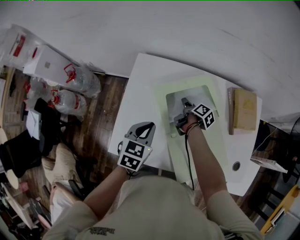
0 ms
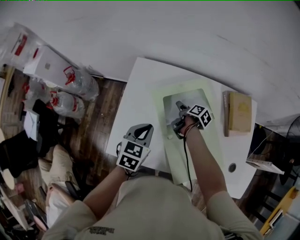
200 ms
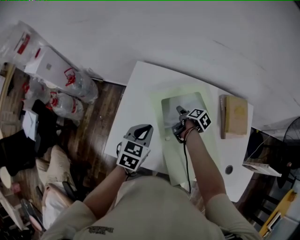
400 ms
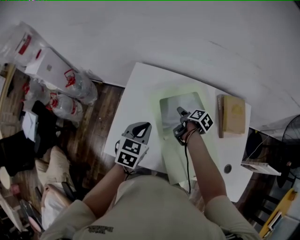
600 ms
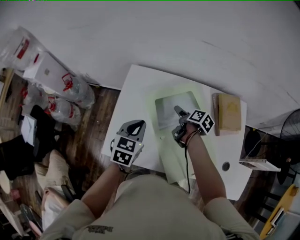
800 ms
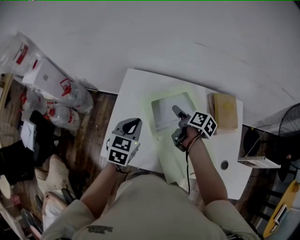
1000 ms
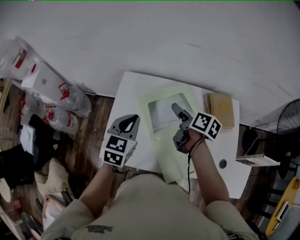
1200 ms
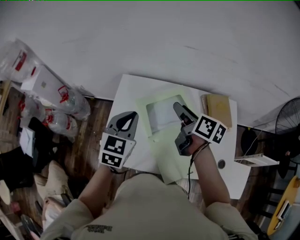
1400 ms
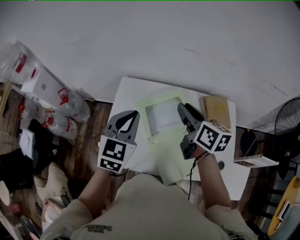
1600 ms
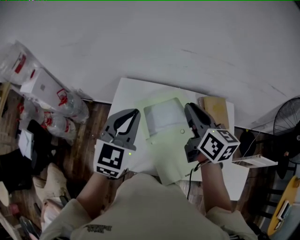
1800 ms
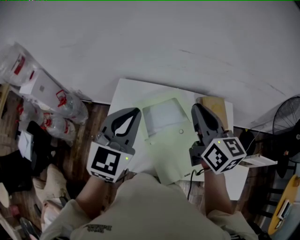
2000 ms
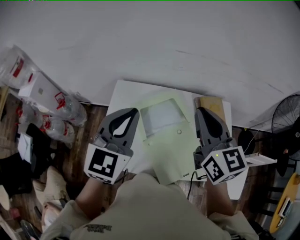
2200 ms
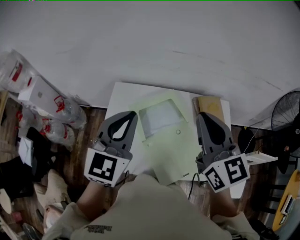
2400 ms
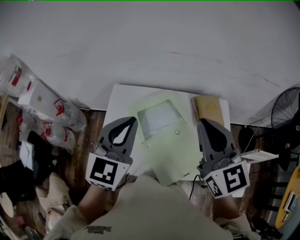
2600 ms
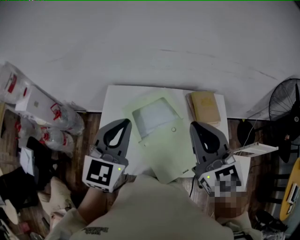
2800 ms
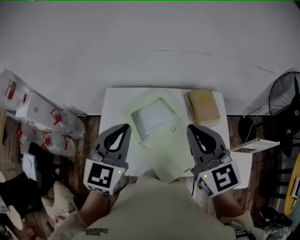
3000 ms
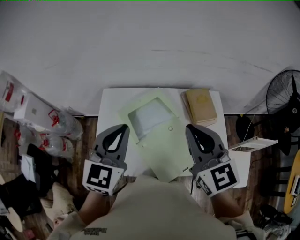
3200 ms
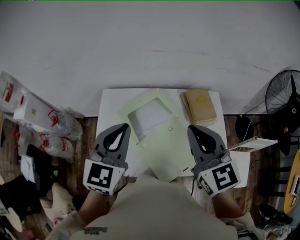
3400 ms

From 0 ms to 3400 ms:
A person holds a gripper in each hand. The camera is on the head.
From 0 ms to 1600 ms: The right gripper moves upward, about 35 cm, rolls counterclockwise, seen from behind, by roughly 50 degrees, and opens and closes again. Meanwhile the left gripper moves upward, some 20 cm, and changes its angle by some 30 degrees.
From 1600 ms to 3400 ms: The left gripper is displaced upward and to the right by approximately 10 cm. The right gripper goes some 15 cm backward, upward and to the right, and turns by some 40 degrees.

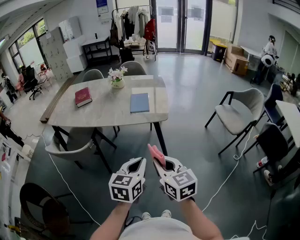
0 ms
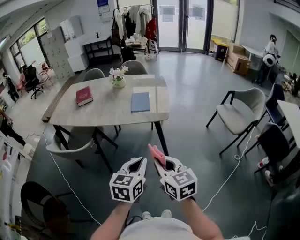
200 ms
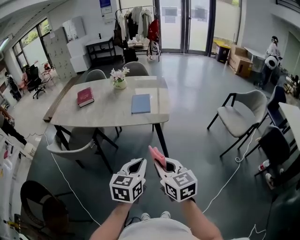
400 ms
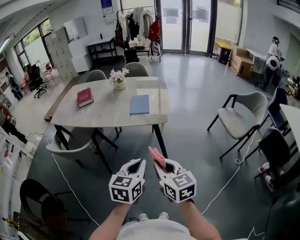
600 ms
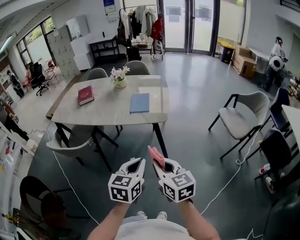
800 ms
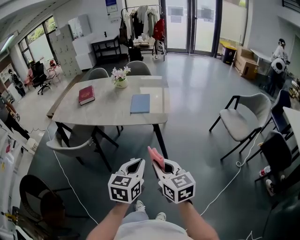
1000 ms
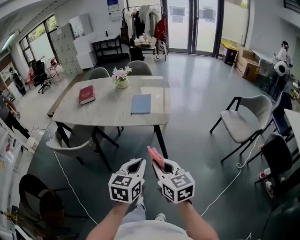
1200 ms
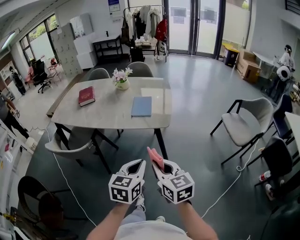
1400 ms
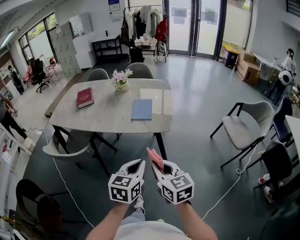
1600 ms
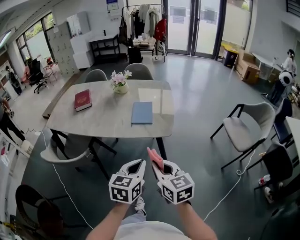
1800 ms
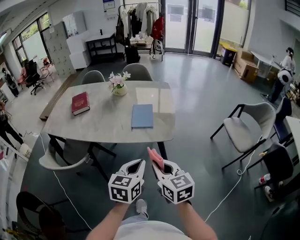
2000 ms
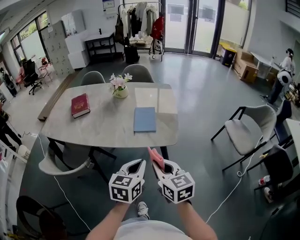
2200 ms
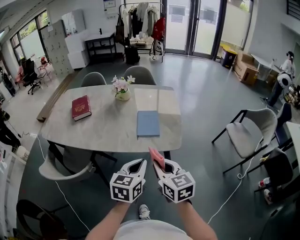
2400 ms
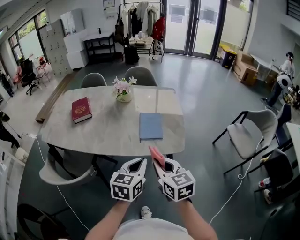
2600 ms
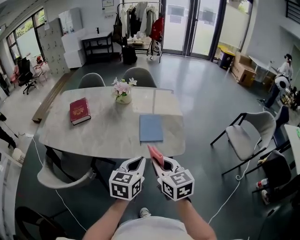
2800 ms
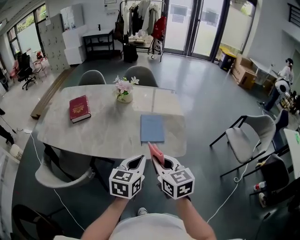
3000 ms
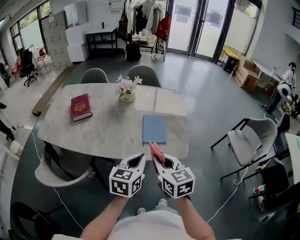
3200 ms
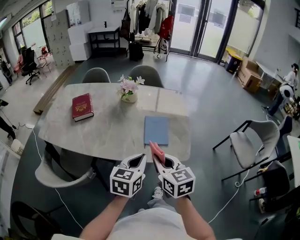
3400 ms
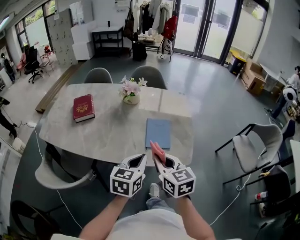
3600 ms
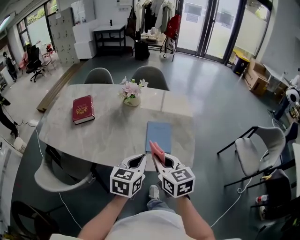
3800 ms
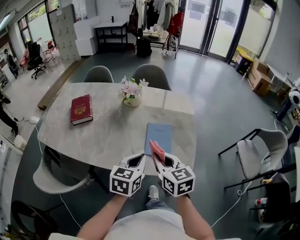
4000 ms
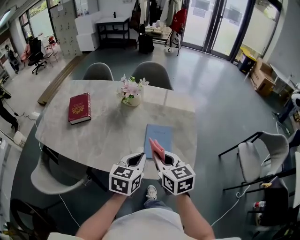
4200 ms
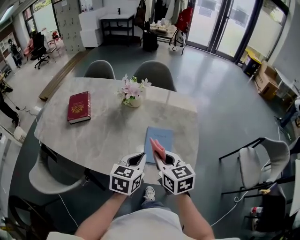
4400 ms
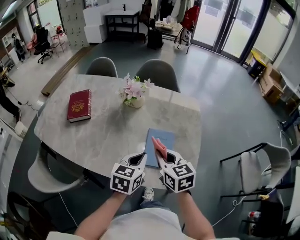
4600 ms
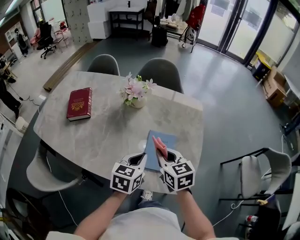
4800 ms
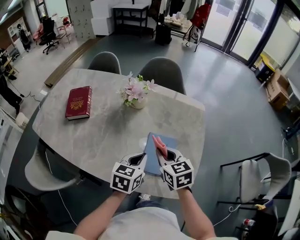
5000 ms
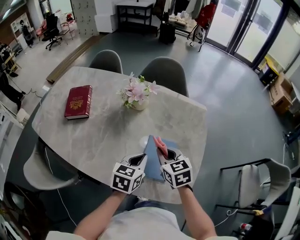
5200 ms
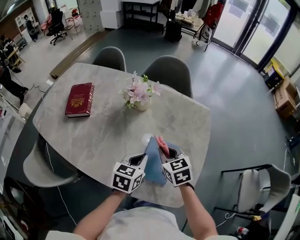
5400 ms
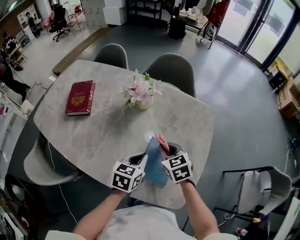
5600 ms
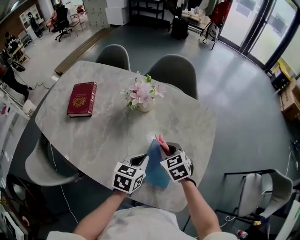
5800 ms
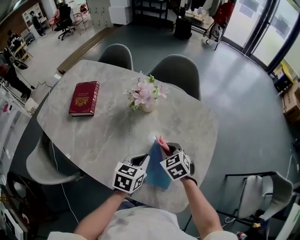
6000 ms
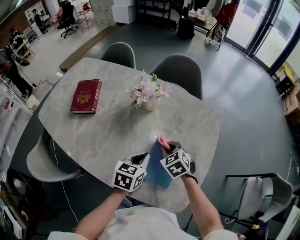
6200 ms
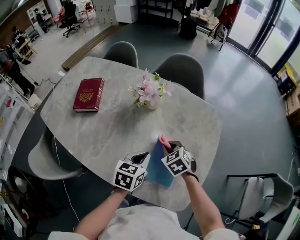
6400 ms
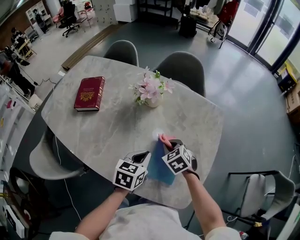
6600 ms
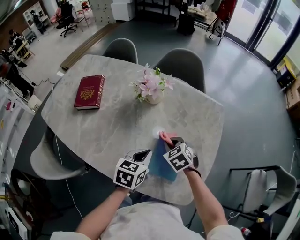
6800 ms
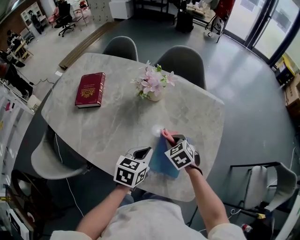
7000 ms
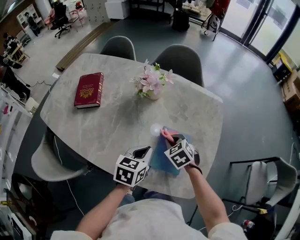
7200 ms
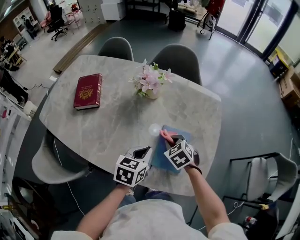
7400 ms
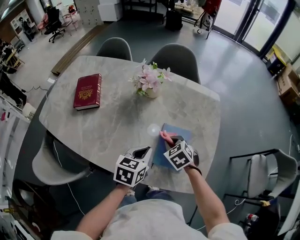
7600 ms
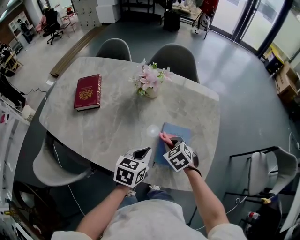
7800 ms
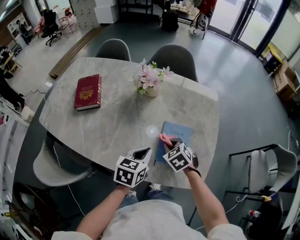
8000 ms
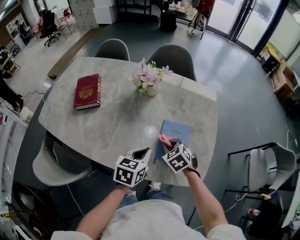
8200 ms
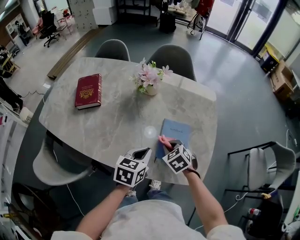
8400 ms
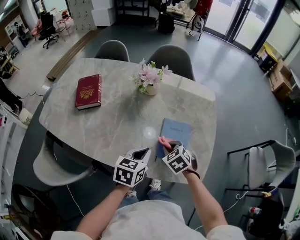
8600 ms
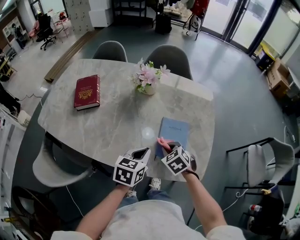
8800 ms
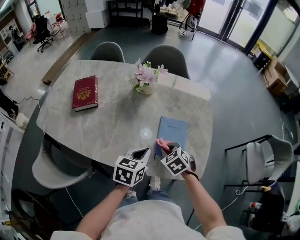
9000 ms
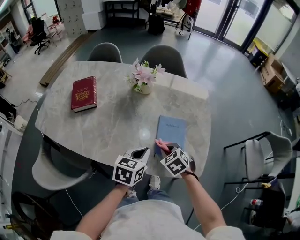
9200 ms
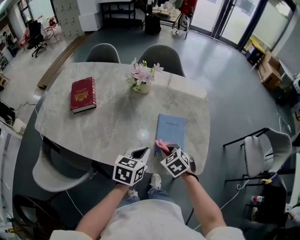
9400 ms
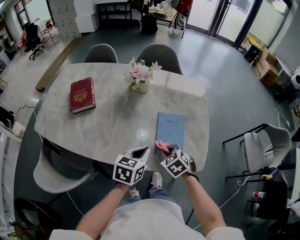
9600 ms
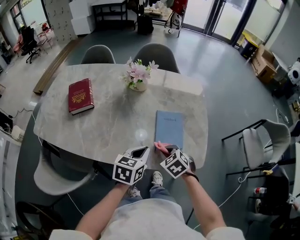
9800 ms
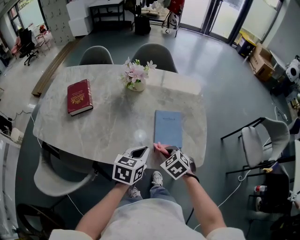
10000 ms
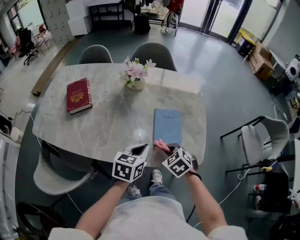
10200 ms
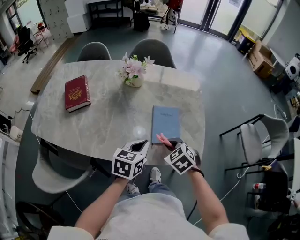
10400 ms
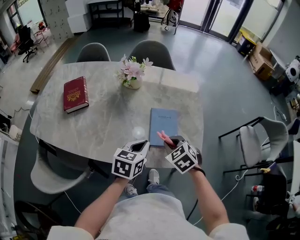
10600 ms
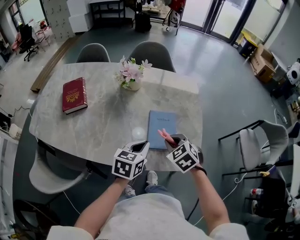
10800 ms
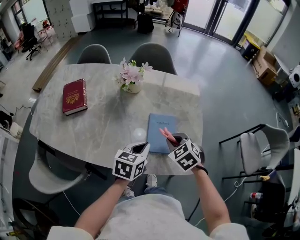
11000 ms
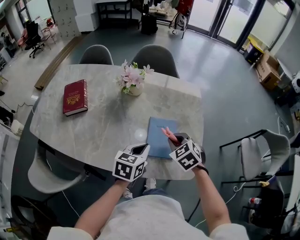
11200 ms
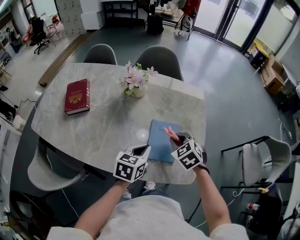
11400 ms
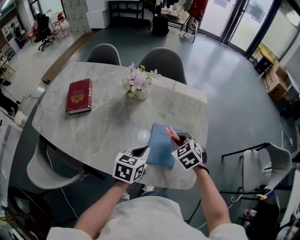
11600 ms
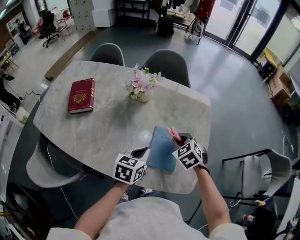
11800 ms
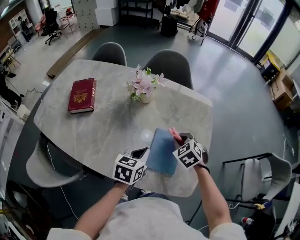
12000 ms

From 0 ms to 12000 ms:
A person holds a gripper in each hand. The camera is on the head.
From 0 ms to 1600 ms: Both grippers move forward, roughly 10 cm.
From 1600 ms to 3000 ms: The grippers both shift forward and to the left by roughly 25 cm.
From 3000 ms to 4400 ms: Both grippers move forward, about 20 cm.
From 4400 ms to 6000 ms: Both grippers move forward and downward, roughly 20 cm. The right gripper turns by about 40 degrees.
From 6000 ms to 7600 ms: The right gripper shifts roughly 5 cm backward, while the left gripper shifts by some 5 cm.
From 7600 ms to 9000 ms: The left gripper travels backward by roughly 5 cm. Meanwhile the right gripper goes approximately 10 cm backward.
From 9000 ms to 10400 ms: The right gripper ends up about 5 cm from where it was.
From 10400 ms to 12000 ms: The right gripper goes approximately 20 cm forward. The left gripper goes some 10 cm forward.

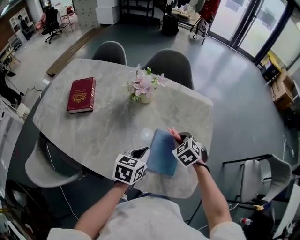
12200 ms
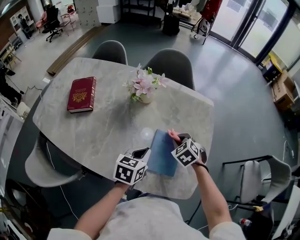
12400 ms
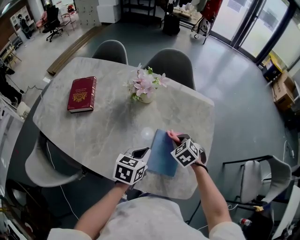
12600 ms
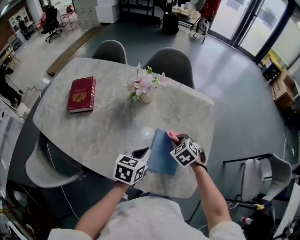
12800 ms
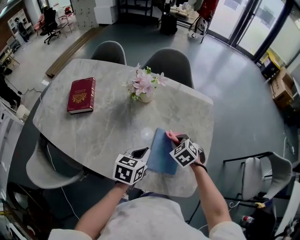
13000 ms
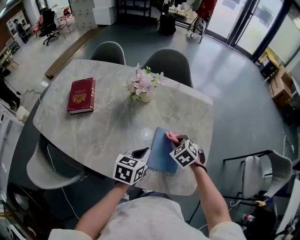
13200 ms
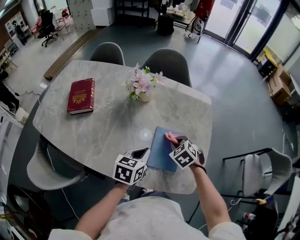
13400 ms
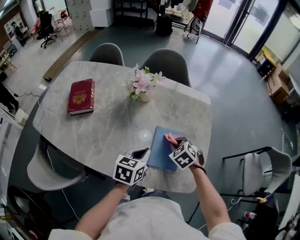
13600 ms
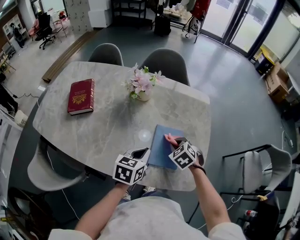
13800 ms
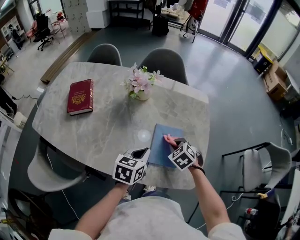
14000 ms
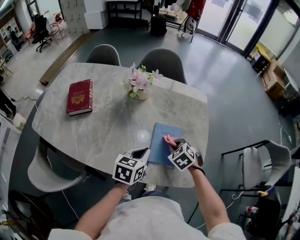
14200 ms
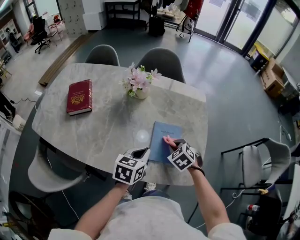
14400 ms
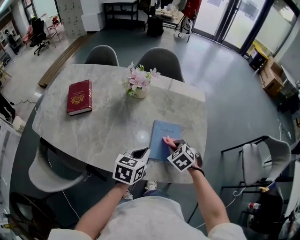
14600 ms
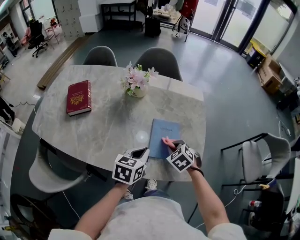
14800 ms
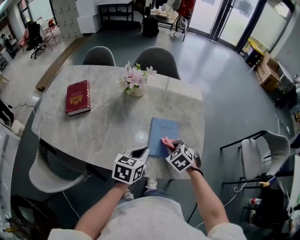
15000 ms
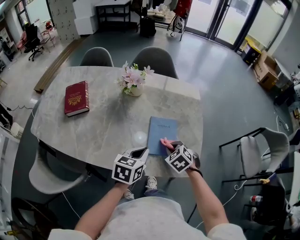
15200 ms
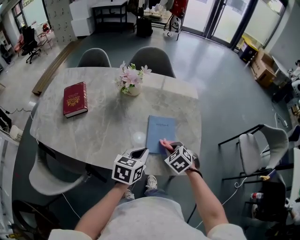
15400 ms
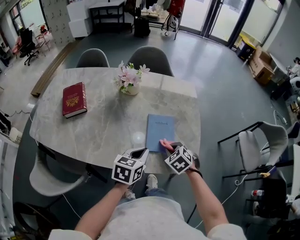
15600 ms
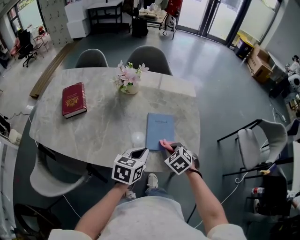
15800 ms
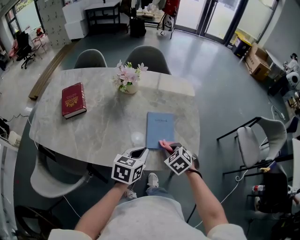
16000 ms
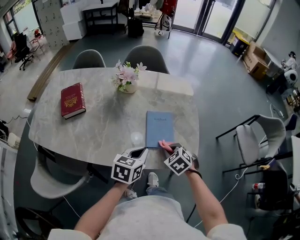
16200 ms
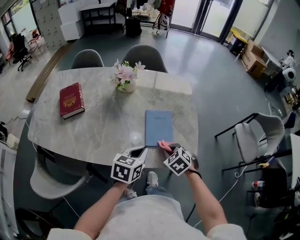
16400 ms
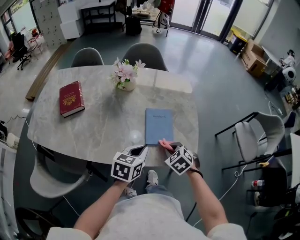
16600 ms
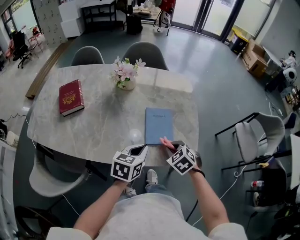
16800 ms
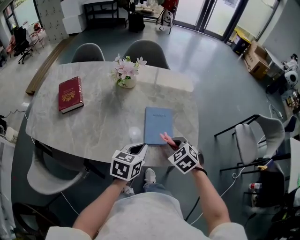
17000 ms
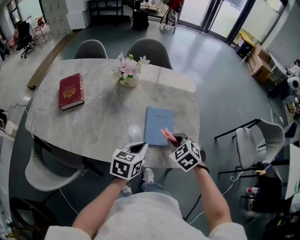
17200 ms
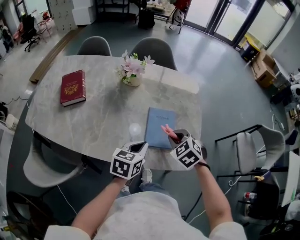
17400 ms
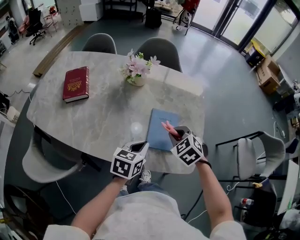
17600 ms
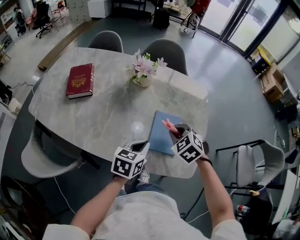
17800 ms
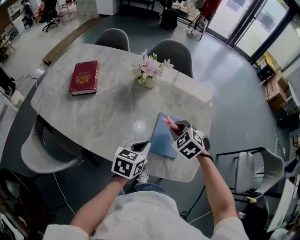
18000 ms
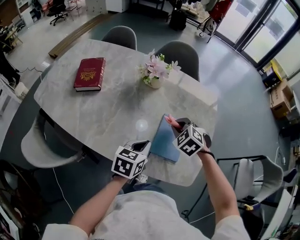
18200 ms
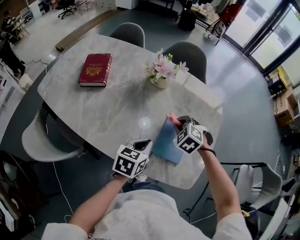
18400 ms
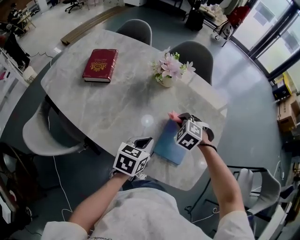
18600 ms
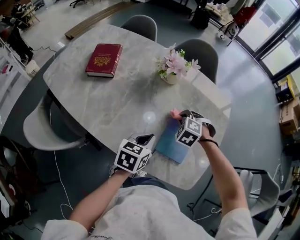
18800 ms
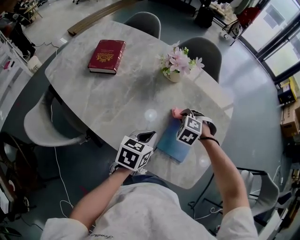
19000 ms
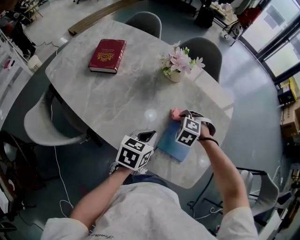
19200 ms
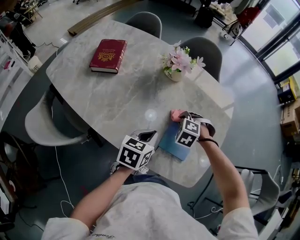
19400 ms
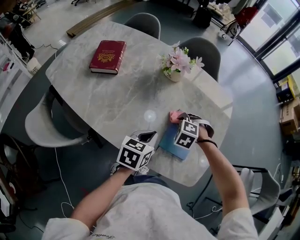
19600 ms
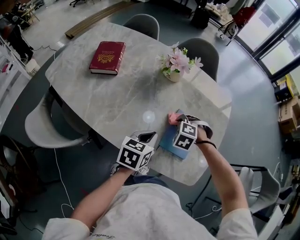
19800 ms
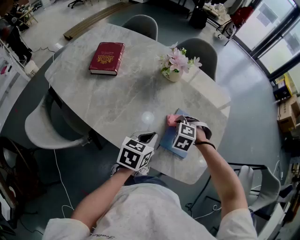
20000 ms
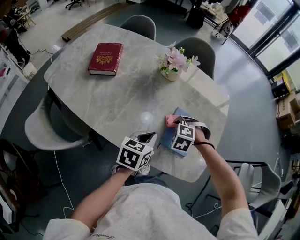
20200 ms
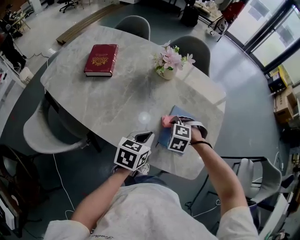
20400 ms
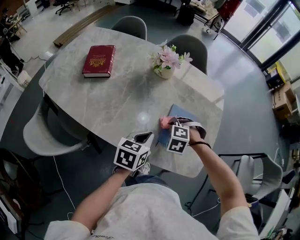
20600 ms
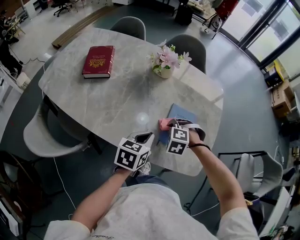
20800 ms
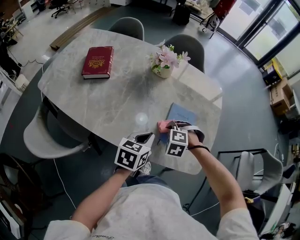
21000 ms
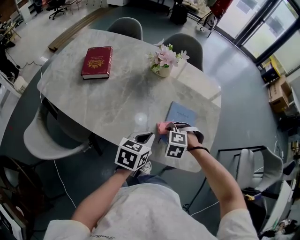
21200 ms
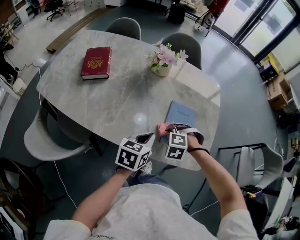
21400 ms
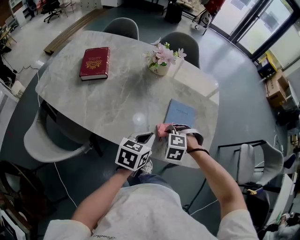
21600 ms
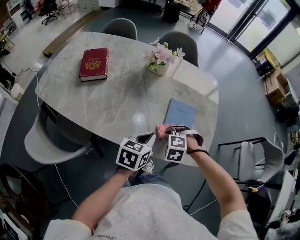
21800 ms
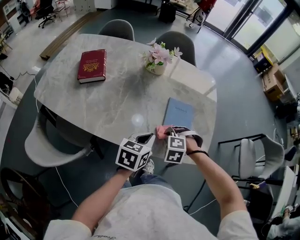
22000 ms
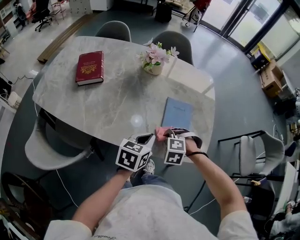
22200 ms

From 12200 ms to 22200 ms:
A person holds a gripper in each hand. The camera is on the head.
From 12200 ms to 13600 ms: The right gripper moves approximately 5 cm.
From 13600 ms to 15000 ms: The left gripper moves backward, some 5 cm. Meanwhile the right gripper heads backward, covering about 10 cm.
From 15000 ms to 16400 ms: The right gripper shifts about 10 cm backward.
From 16400 ms to 18000 ms: The left gripper moves forward, roughly 5 cm; the right gripper heads forward and upward, covering approximately 15 cm, and swivels about 20 degrees.
From 18000 ms to 19400 ms: The right gripper heads downward, covering roughly 10 cm, and changes its angle by about 30 degrees.
From 19400 ms to 20800 ms: The right gripper shifts approximately 10 cm backward.
From 20800 ms to 22200 ms: The right gripper is displaced backward by roughly 10 cm.
